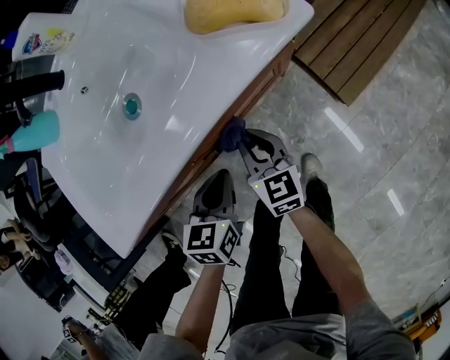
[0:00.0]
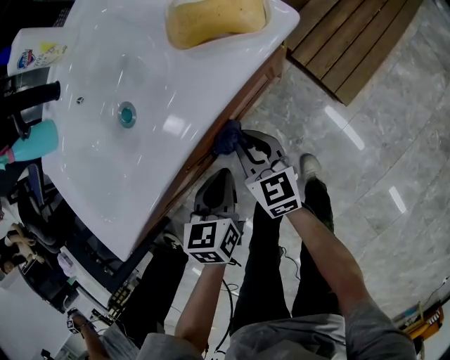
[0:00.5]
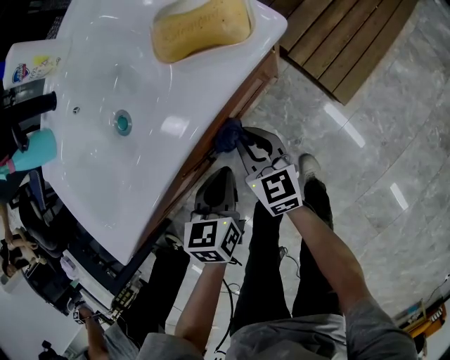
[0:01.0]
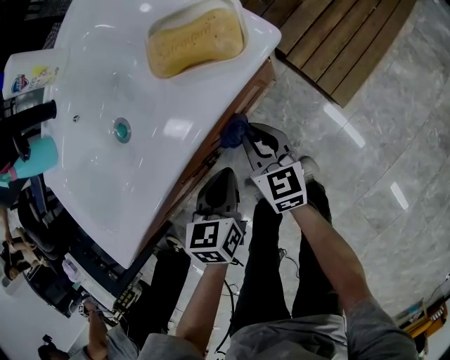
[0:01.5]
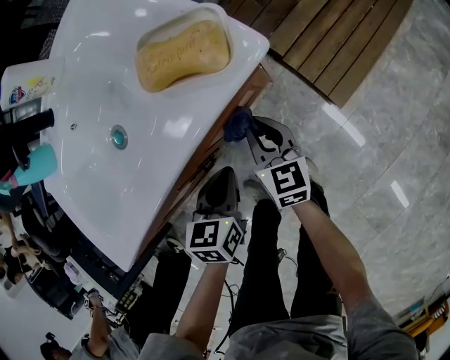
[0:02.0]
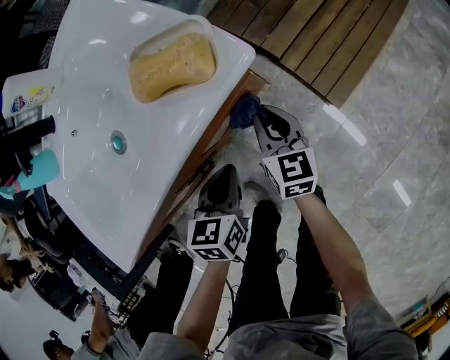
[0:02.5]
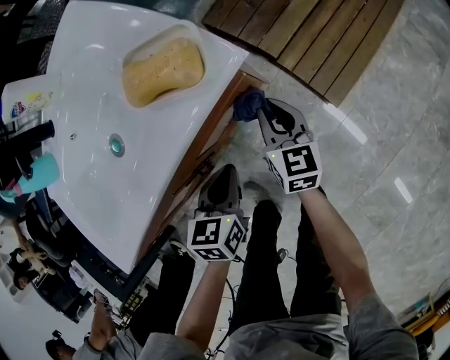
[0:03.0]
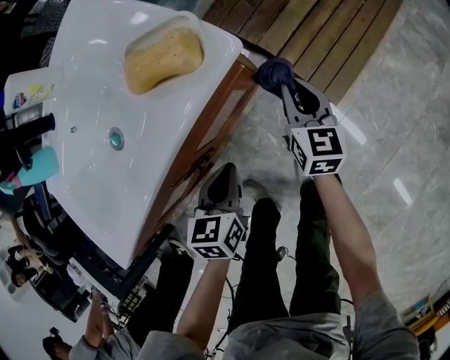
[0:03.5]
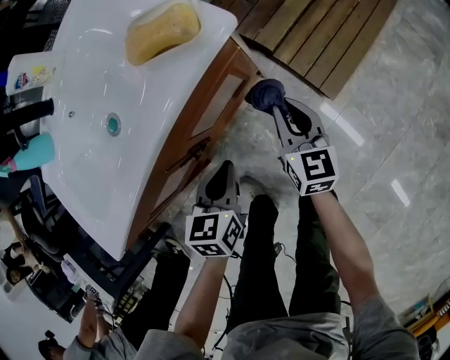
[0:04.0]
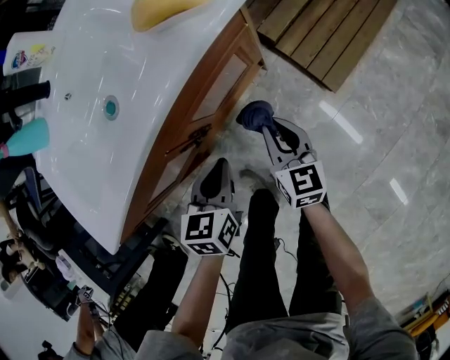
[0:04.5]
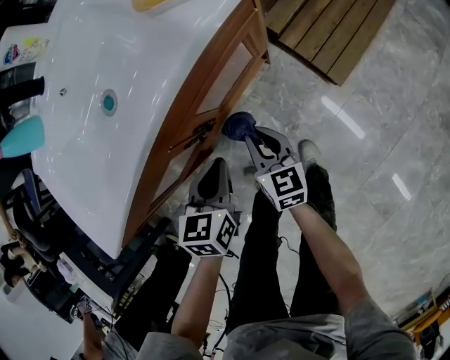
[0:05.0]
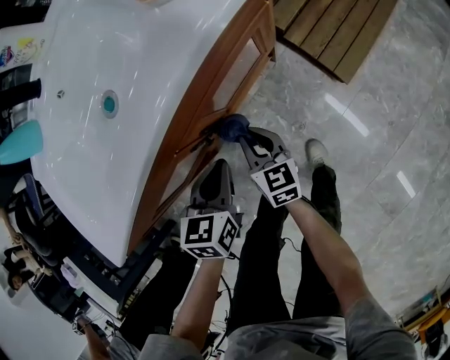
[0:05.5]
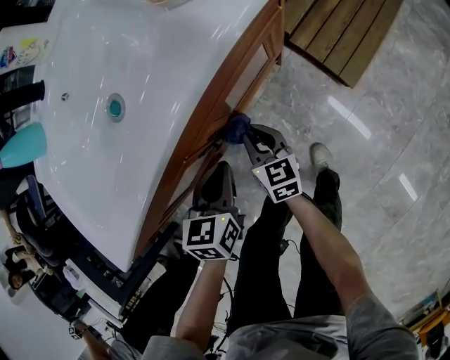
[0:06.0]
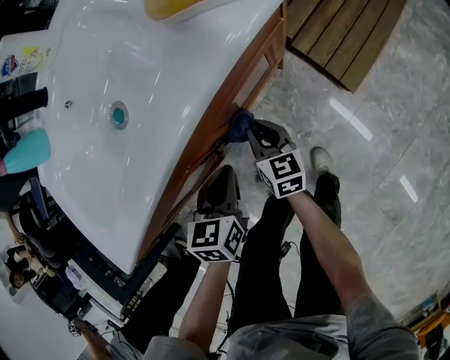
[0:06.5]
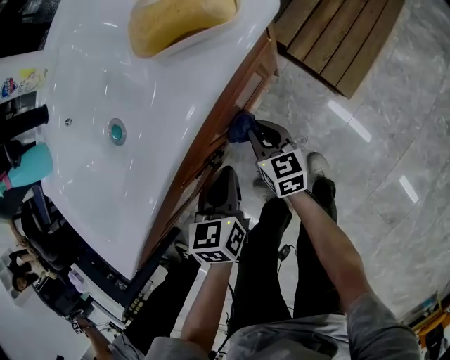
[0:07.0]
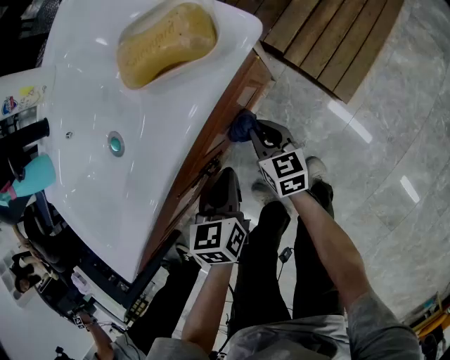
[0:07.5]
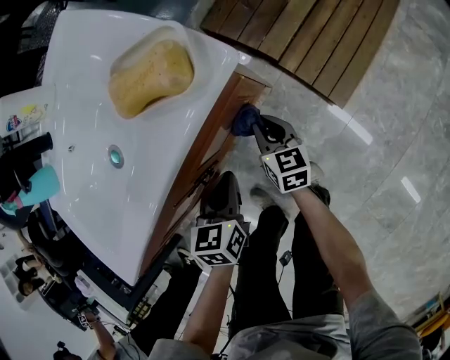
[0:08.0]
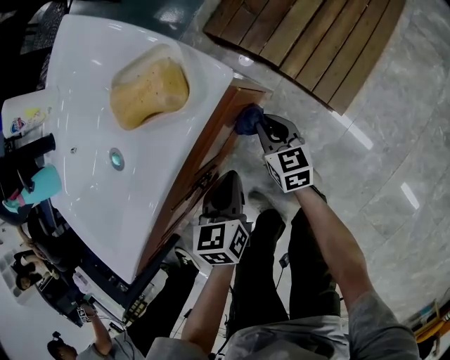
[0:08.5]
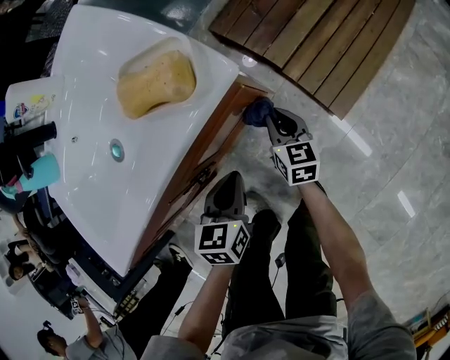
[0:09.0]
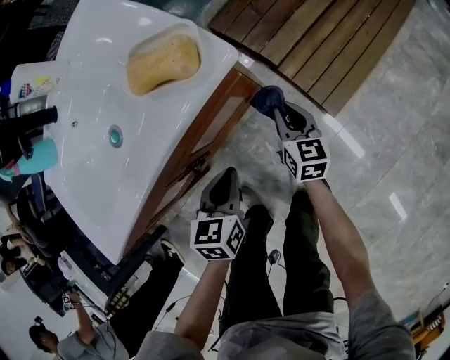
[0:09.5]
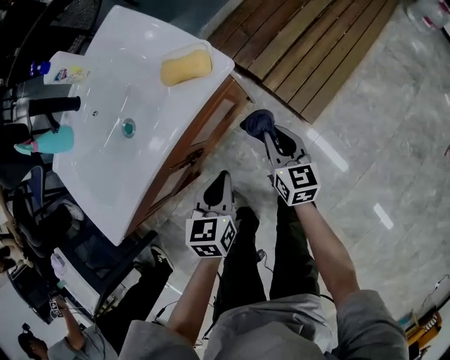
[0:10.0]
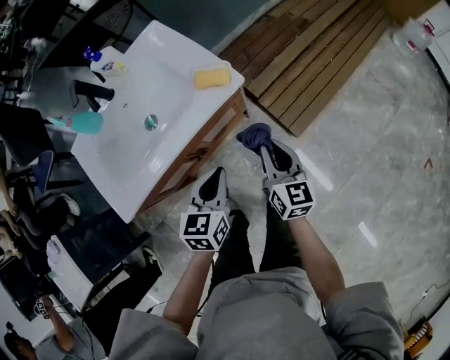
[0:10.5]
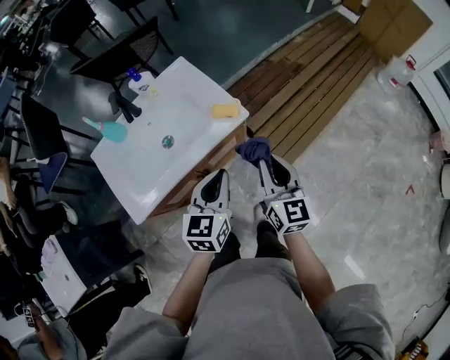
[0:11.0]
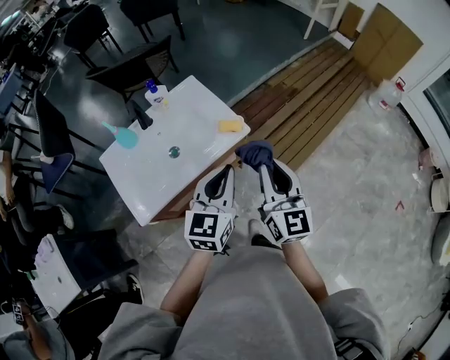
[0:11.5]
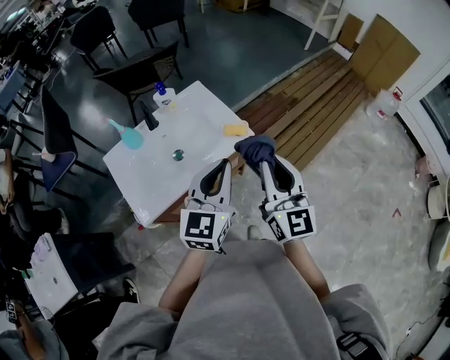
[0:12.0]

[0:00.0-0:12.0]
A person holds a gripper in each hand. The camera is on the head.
0:00.0 to 0:02.0: The left gripper heads to the right, covering roughly 5 cm. The right gripper moves to the right and forward, roughly 10 cm.
0:02.0 to 0:04.0: The right gripper is displaced to the right by roughly 10 cm.
0:04.0 to 0:06.0: The left gripper shifts some 10 cm to the left. The right gripper goes some 20 cm to the left and downward.
0:06.0 to 0:08.0: The left gripper goes roughly 10 cm to the right and forward; the right gripper shifts some 15 cm to the right and forward.
0:08.0 to 0:10.0: The left gripper goes about 10 cm upward; the right gripper heads upward and to the right, covering some 20 cm.
0:10.0 to 0:12.0: Both grippers travel together upward, some 50 cm. The right gripper tilts its fingers roughly 30 degrees upward. The left gripper angles its fingers upward, by roughly 40 degrees.

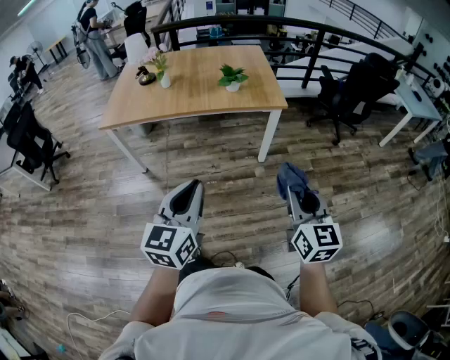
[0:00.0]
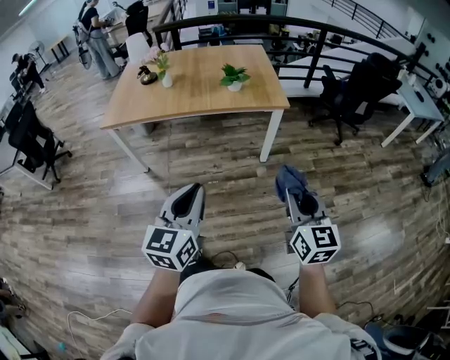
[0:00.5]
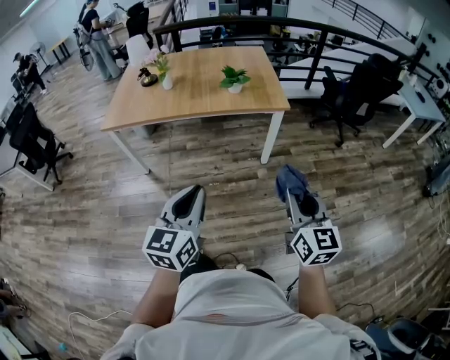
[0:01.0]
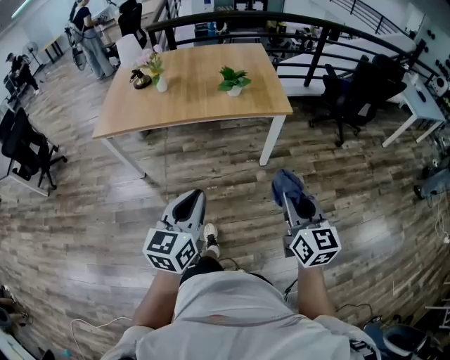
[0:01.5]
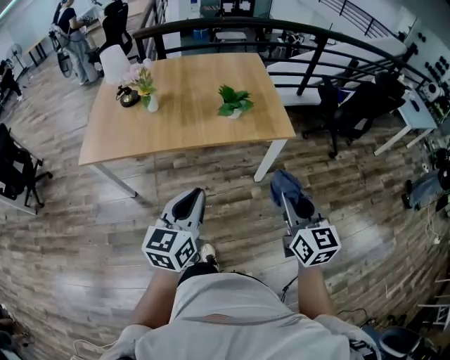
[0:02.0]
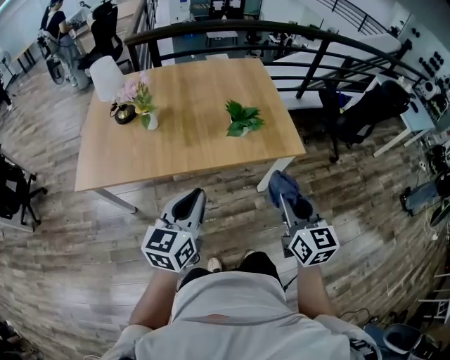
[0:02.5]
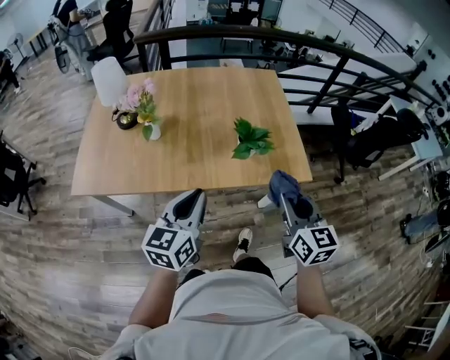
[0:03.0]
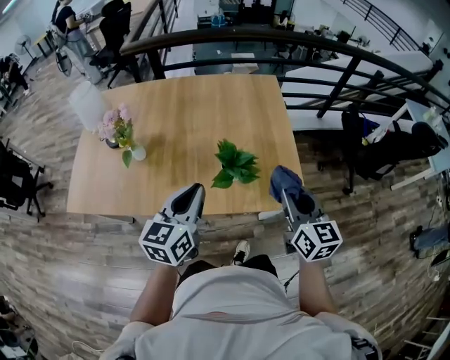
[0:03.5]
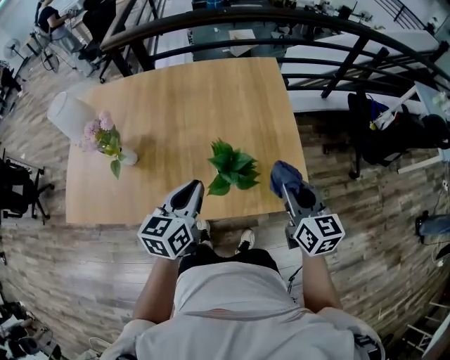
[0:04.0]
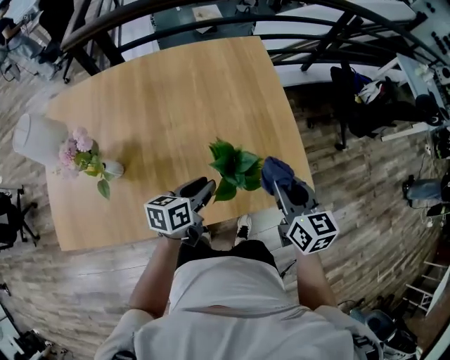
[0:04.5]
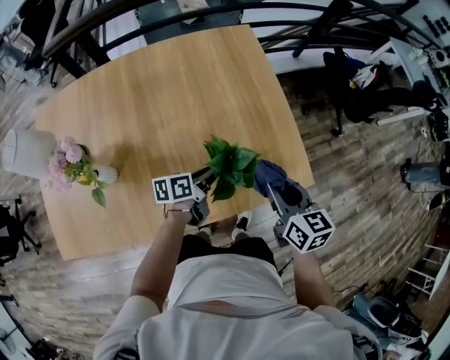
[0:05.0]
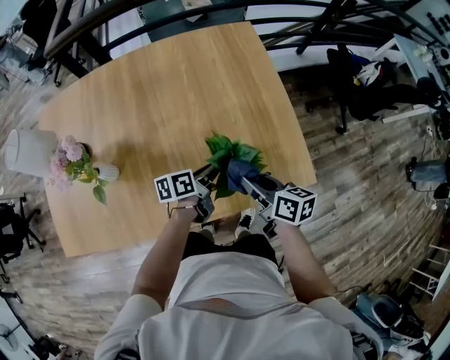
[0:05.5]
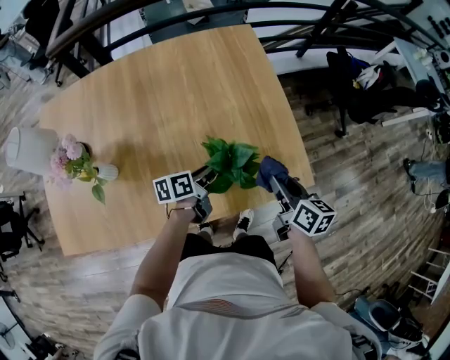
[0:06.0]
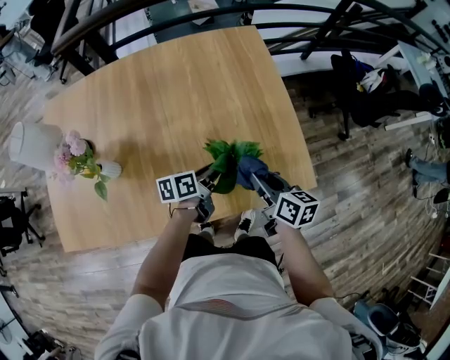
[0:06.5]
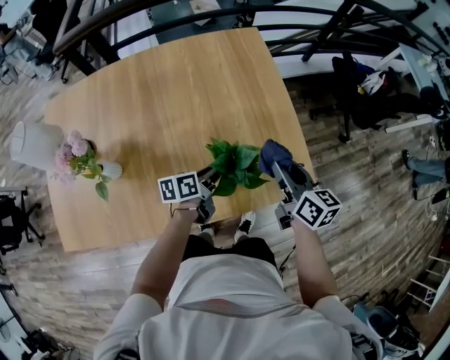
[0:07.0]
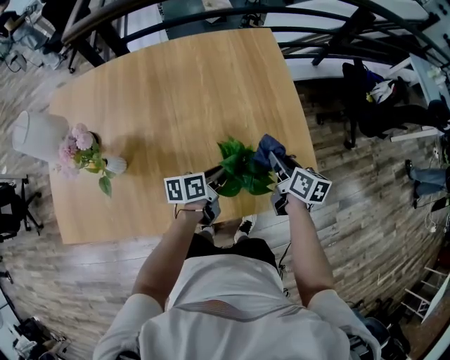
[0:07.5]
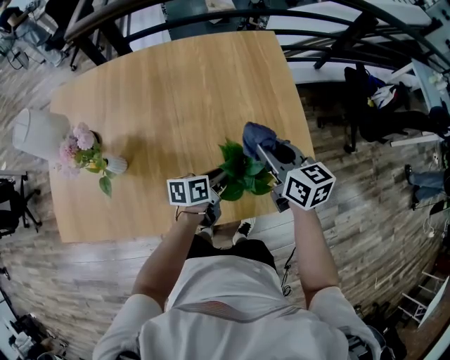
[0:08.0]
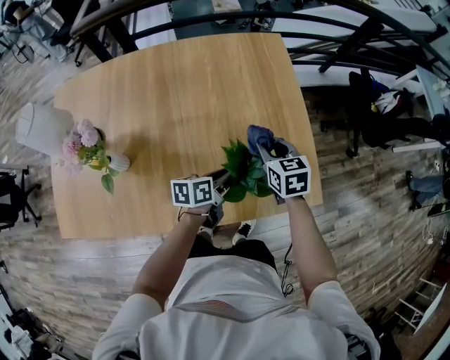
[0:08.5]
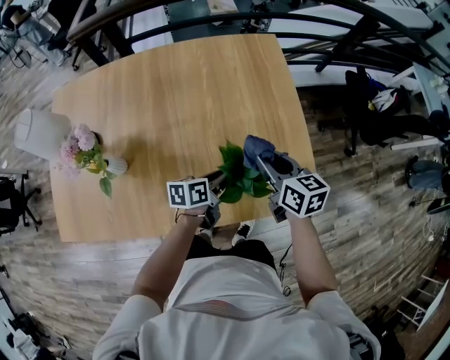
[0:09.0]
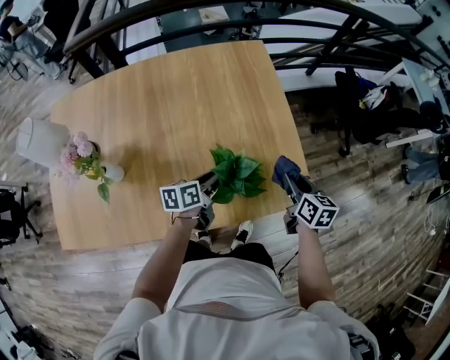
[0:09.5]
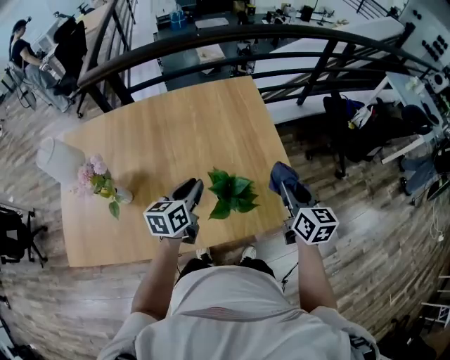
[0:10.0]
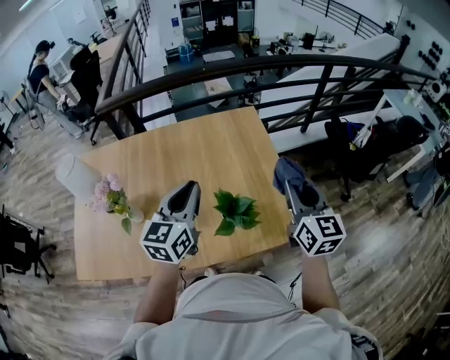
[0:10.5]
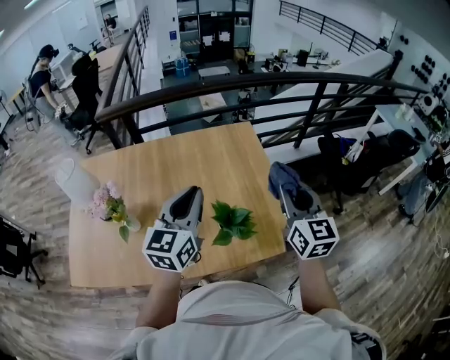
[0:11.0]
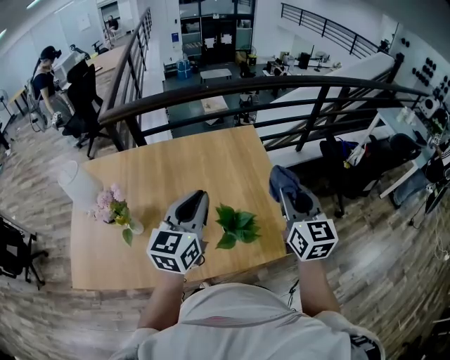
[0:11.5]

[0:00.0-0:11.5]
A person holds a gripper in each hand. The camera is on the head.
0:00.0 to 0:02.0: Both grippers travel together forward, roughly 25 cm.
0:02.0 to 0:04.0: Both grippers are carried forward, about 40 cm.
0:04.0 to 0:06.0: The right gripper goes approximately 10 cm downward, and changes its angle by about 30 degrees. The left gripper is displaced downward and forward by approximately 20 cm, and turns by roughly 50 degrees.
0:06.0 to 0:07.5: The right gripper heads forward, covering approximately 10 cm.
0:07.5 to 0:09.5: The right gripper moves to the right, about 10 cm.
0:09.5 to 0:11.5: Both grippers move upward, about 30 cm. The right gripper changes its angle by approximately 40 degrees. Meanwhile the left gripper rolls clockwise, seen from behind, by some 50 degrees.

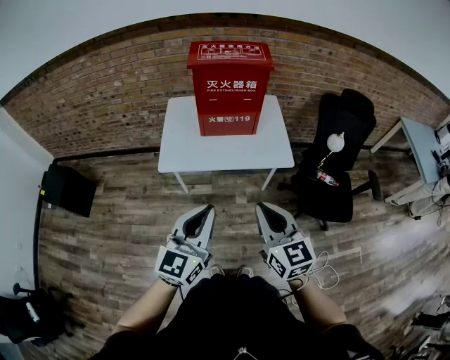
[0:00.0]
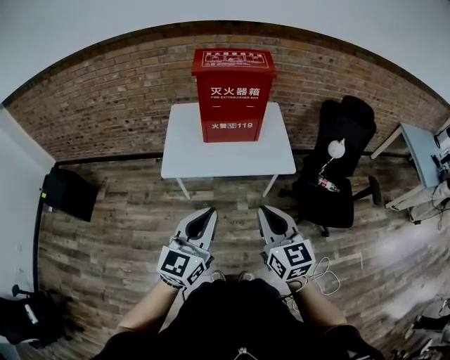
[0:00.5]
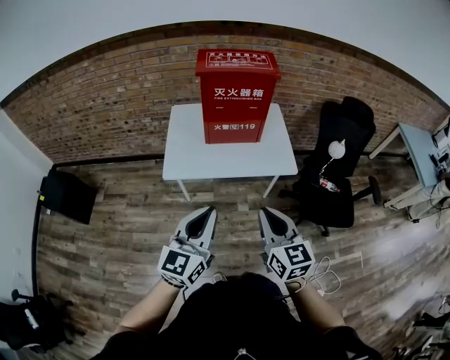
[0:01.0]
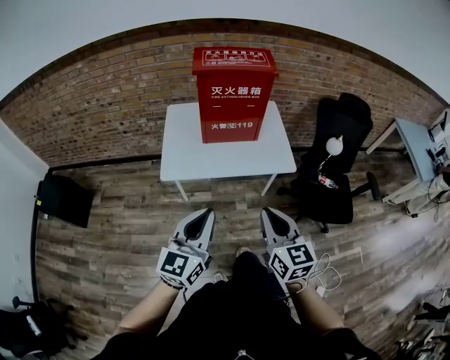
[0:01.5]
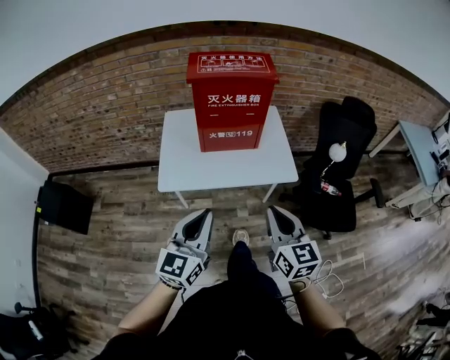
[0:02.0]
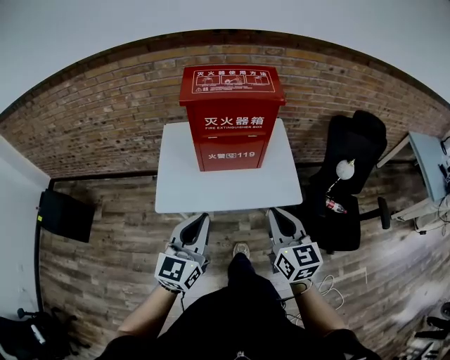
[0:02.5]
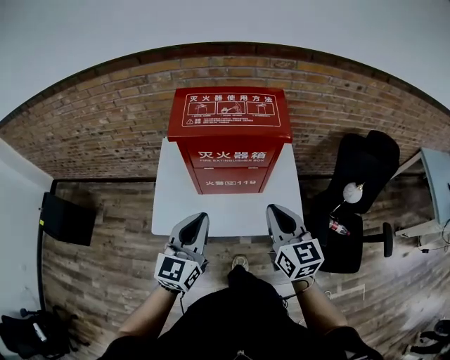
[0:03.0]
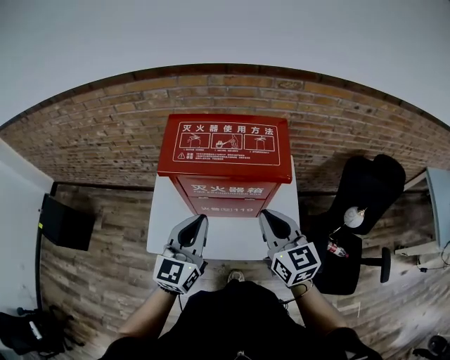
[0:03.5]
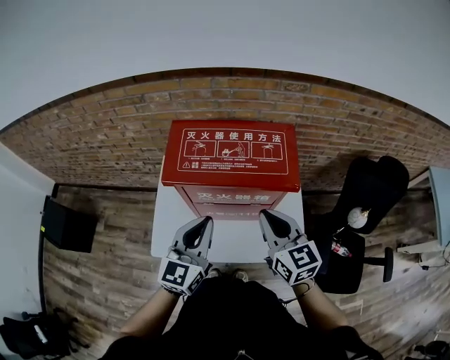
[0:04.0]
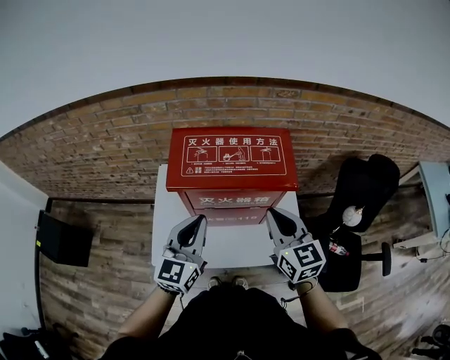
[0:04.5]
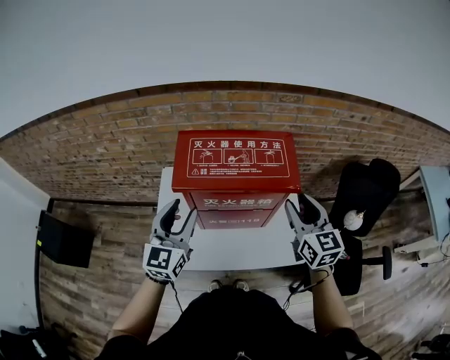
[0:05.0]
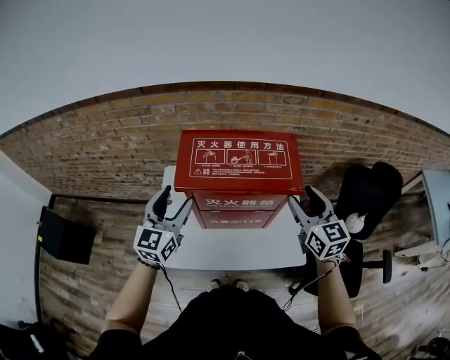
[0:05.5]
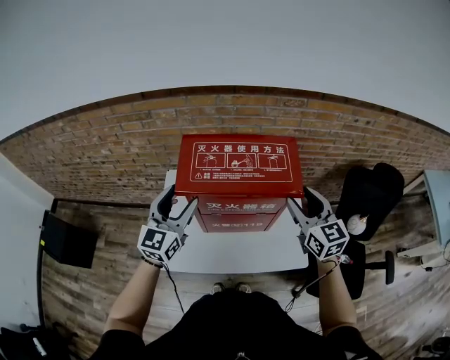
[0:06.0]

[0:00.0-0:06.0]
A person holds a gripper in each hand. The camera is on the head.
0:00.0 to 0:02.0: Both grippers travel together forward, about 10 cm.
0:02.0 to 0:04.0: Both grippers are carried forward, some 40 cm.
0:04.0 to 0:06.0: The left gripper goes roughly 15 cm to the left and forward, and opens up. Meanwhile the right gripper heads to the right and forward, covering roughly 10 cm, and opens its fingers.
